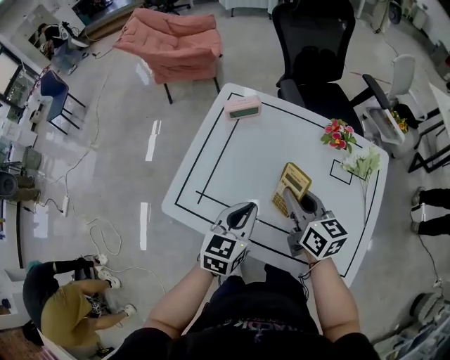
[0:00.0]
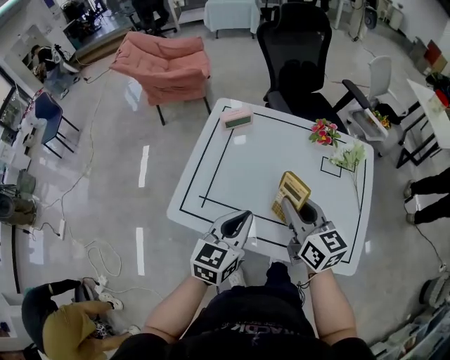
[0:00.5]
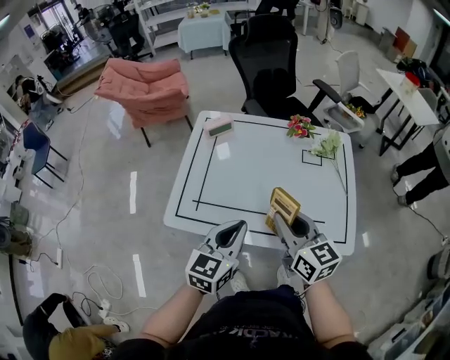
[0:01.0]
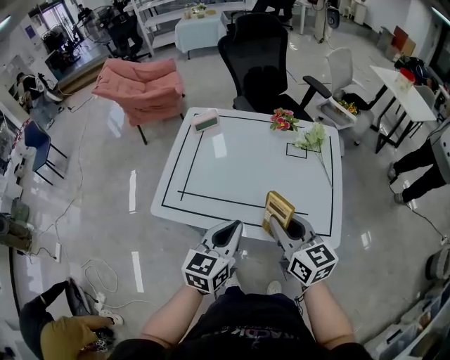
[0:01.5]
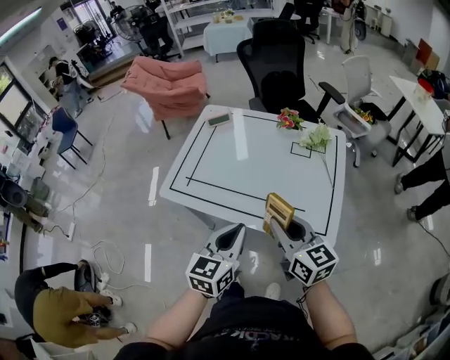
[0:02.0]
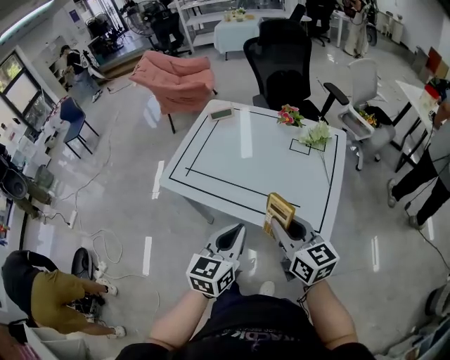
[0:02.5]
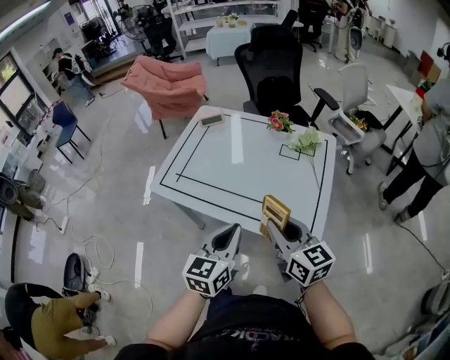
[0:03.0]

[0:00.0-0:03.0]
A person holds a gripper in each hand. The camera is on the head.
0:00.0 to 0:01.5: The left gripper shifts about 20 cm backward and upward. The right gripper shifts approximately 20 cm backward.
0:01.5 to 0:03.0: The left gripper is displaced backward and to the right by roughly 15 cm; the right gripper moves to the right and backward, approximately 10 cm.

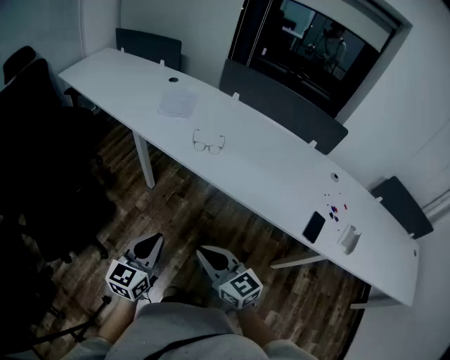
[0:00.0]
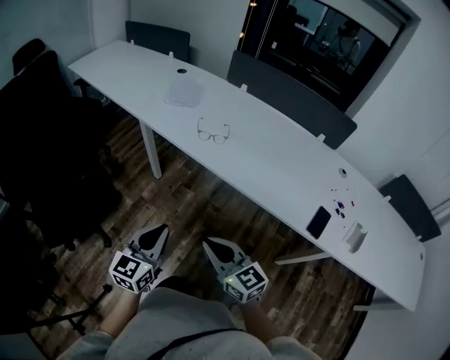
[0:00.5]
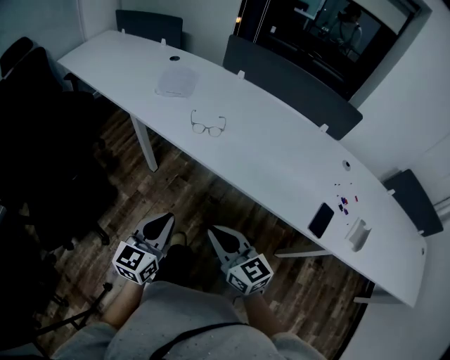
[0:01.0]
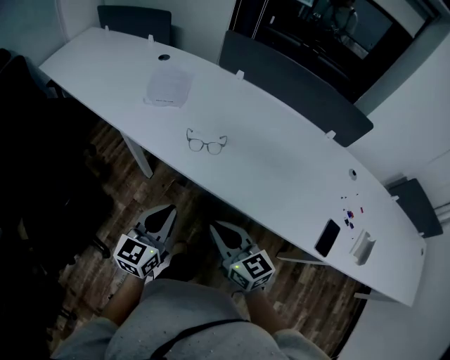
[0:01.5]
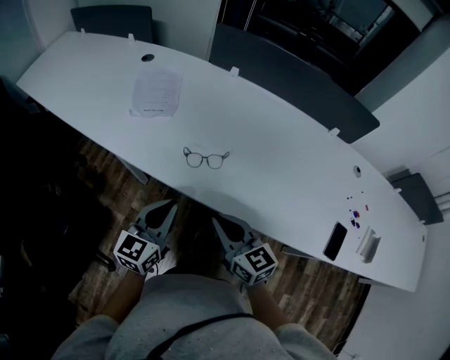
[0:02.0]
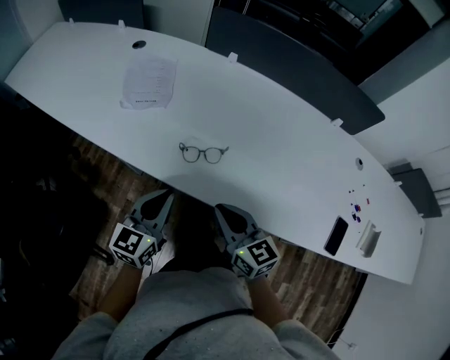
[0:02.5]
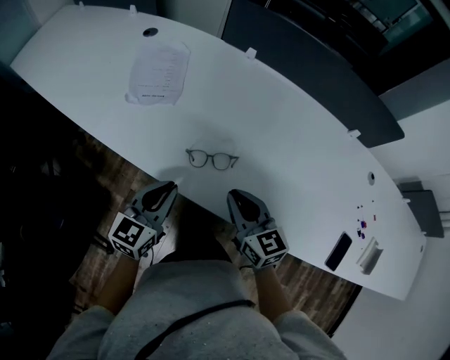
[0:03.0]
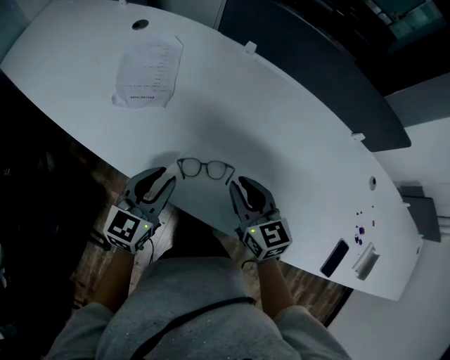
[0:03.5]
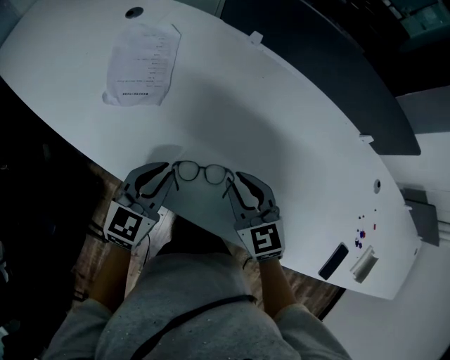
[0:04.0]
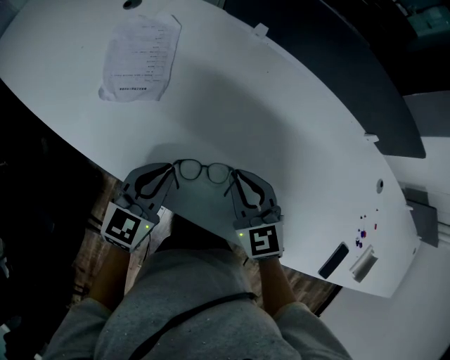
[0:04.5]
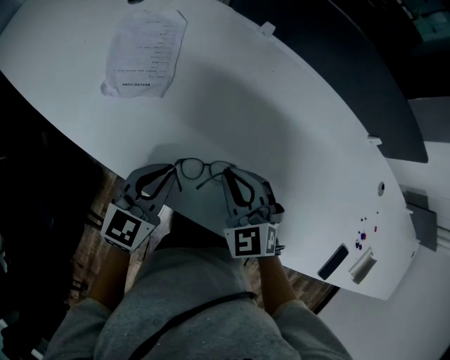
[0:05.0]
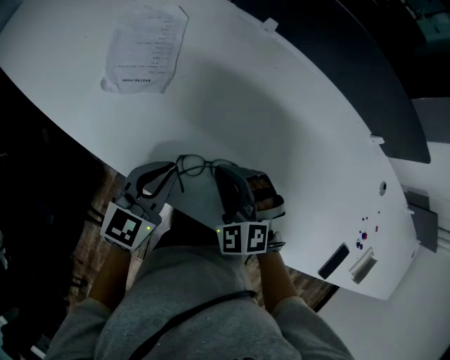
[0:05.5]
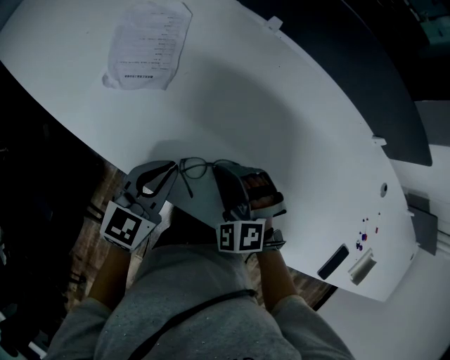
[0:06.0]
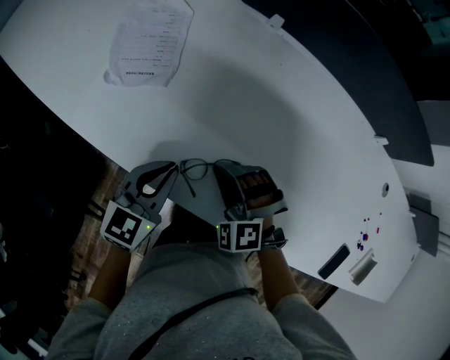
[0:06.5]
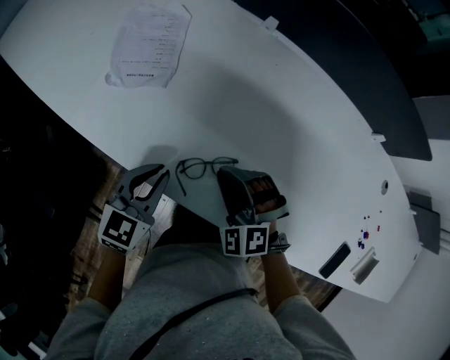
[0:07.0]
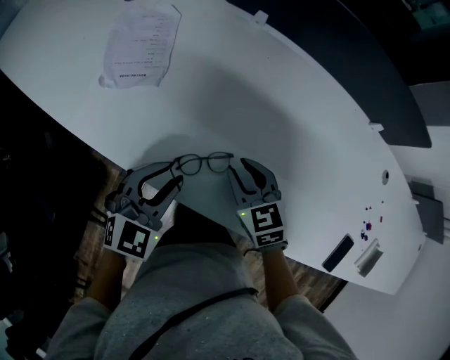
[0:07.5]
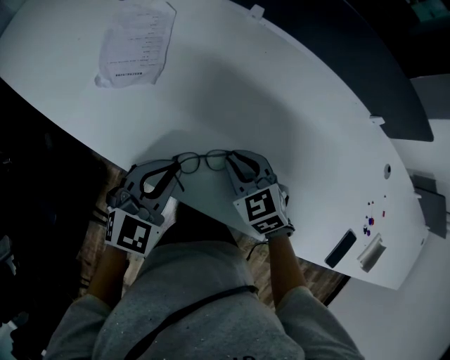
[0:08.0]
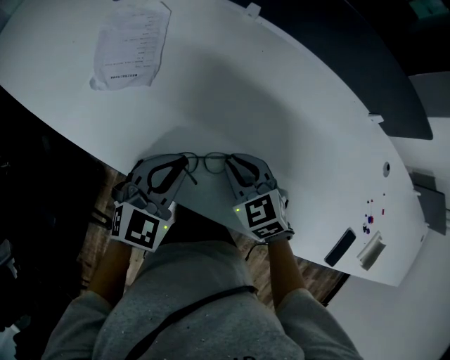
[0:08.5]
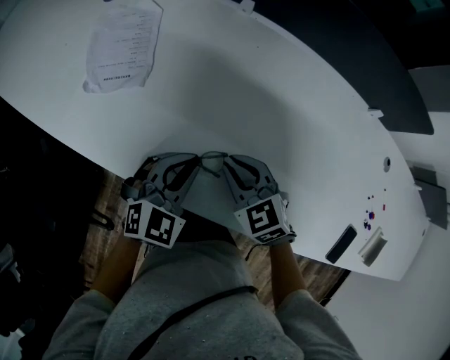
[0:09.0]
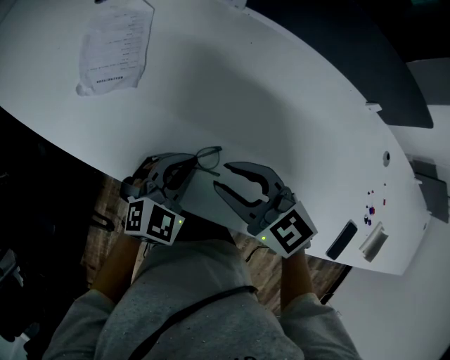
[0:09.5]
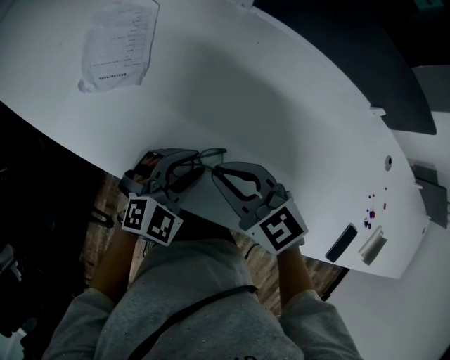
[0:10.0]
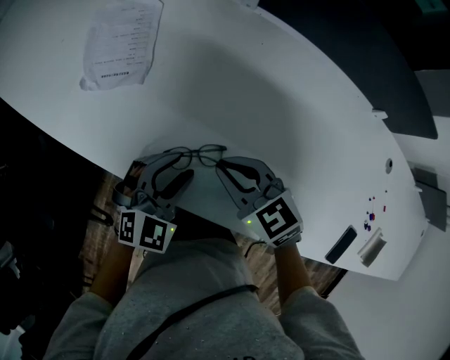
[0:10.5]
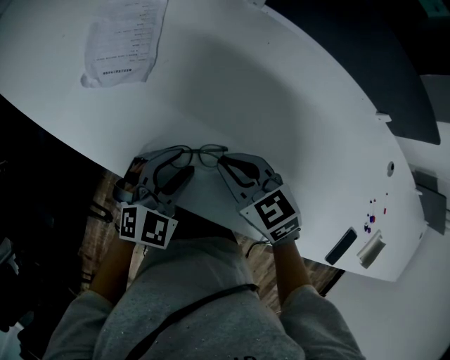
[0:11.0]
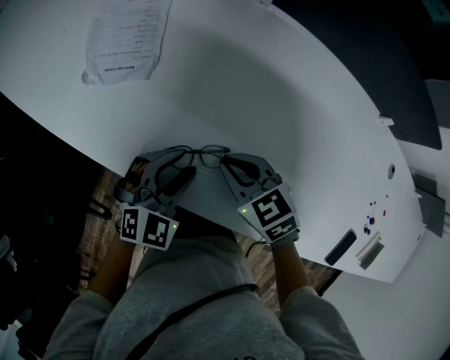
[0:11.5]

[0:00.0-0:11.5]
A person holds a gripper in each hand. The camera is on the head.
0:00.0 to 0:02.0: The grippers both shift forward by roughly 35 cm.
0:02.0 to 0:04.0: Both grippers move forward, roughly 20 cm. The right gripper changes its angle by about 20 degrees.
0:04.0 to 0:06.0: The right gripper goes approximately 10 cm downward and to the left, and twists about 50 degrees counterclockwise, seen from behind.
0:06.0 to 0:07.5: The left gripper swivels some 30 degrees, and opens its fingers; the right gripper goes roughly 5 cm to the right, and twists roughly 60 degrees clockwise, seen from behind.
0:07.5 to 0:09.5: The right gripper goes roughly 10 cm upward, and changes its angle by roughly 30 degrees, while the left gripper goes about 5 cm to the right, and closes its fingers.
0:09.5 to 0:11.5: The left gripper opens up. The right gripper heads downward, covering roughly 10 cm, swivels some 20 degrees, and closes its fingers.

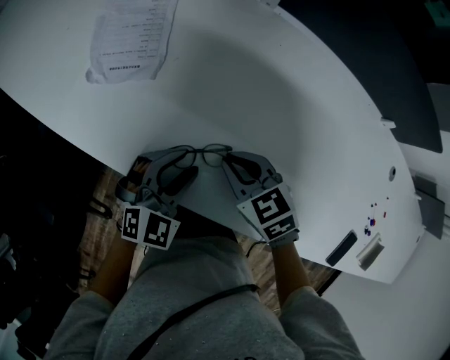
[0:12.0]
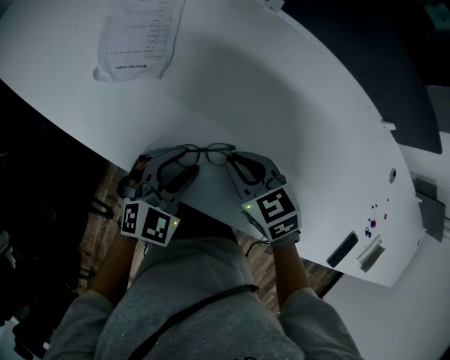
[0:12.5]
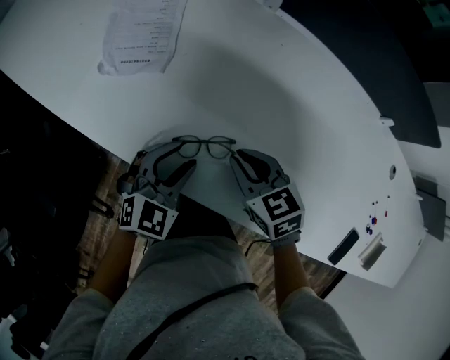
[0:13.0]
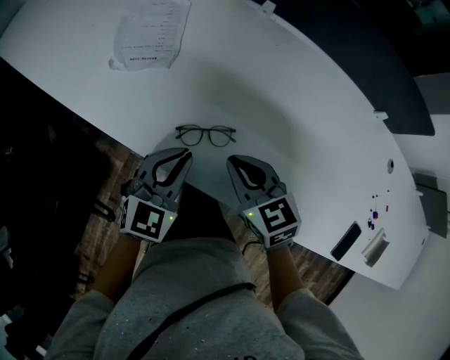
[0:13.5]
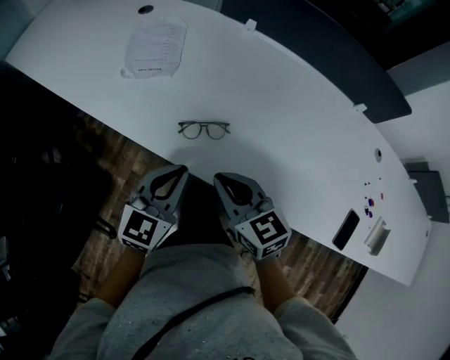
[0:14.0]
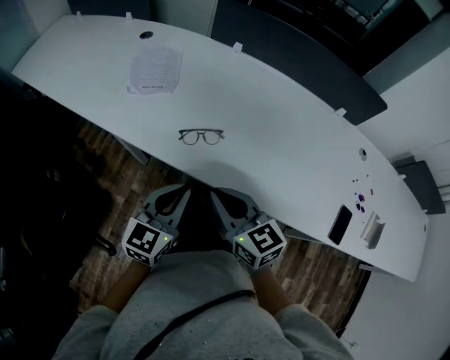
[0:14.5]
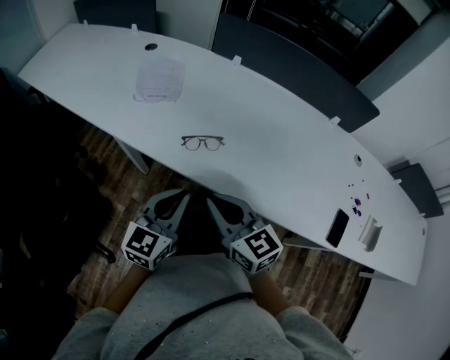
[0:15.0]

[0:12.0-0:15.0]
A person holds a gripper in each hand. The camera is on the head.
0:12.0 to 0:13.5: The right gripper goes roughly 10 cm backward and upward, while the left gripper moves upward, roughly 5 cm, and closes up.
0:13.5 to 0:15.0: Both grippers travel together backward and upward, some 20 cm. The left gripper rotates about 20 degrees.

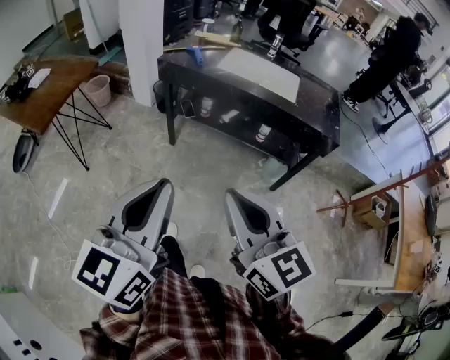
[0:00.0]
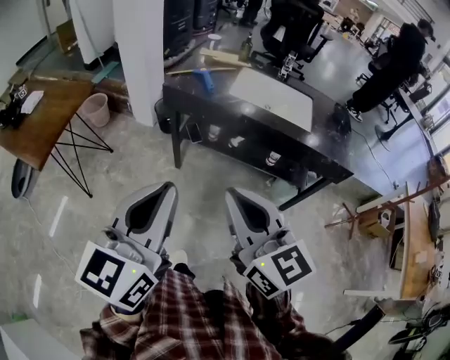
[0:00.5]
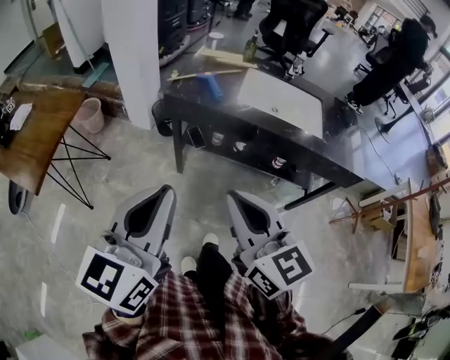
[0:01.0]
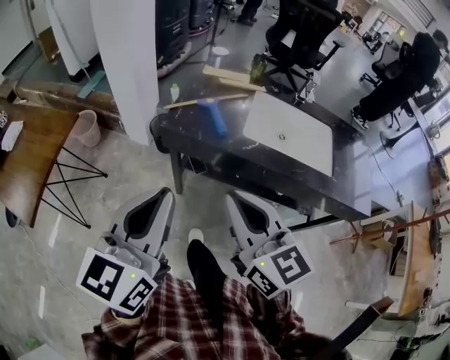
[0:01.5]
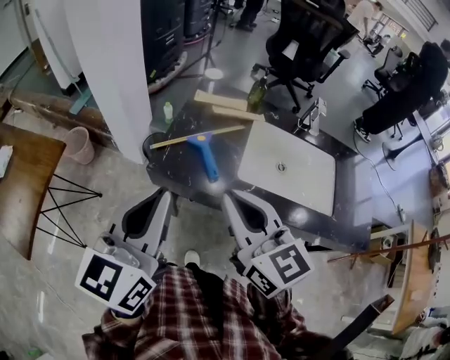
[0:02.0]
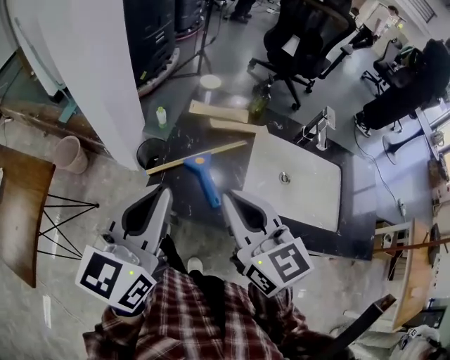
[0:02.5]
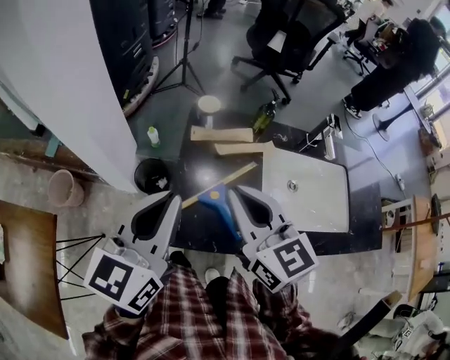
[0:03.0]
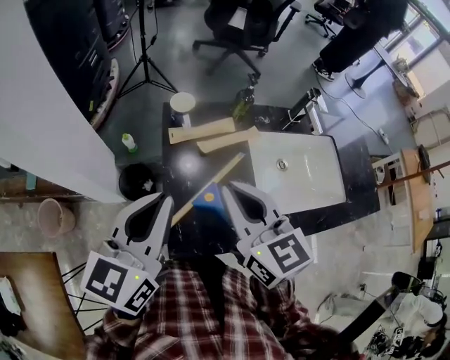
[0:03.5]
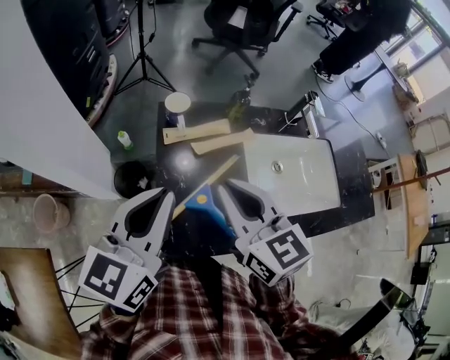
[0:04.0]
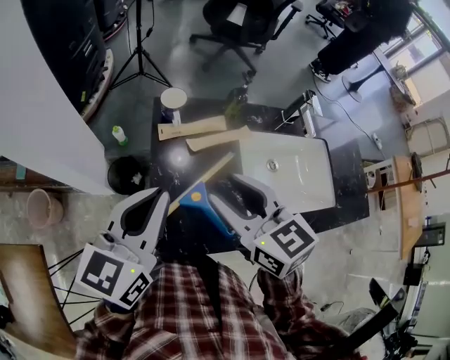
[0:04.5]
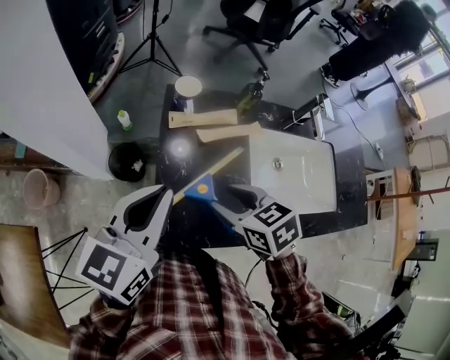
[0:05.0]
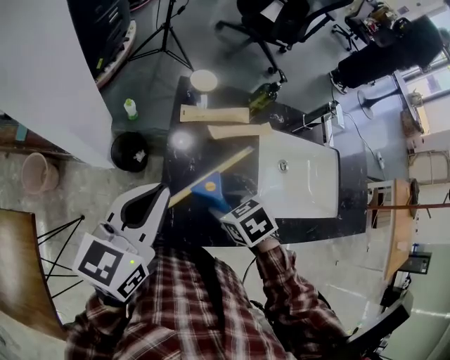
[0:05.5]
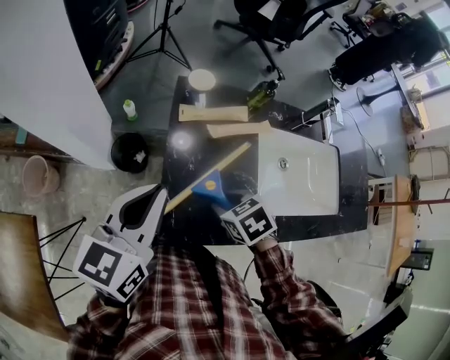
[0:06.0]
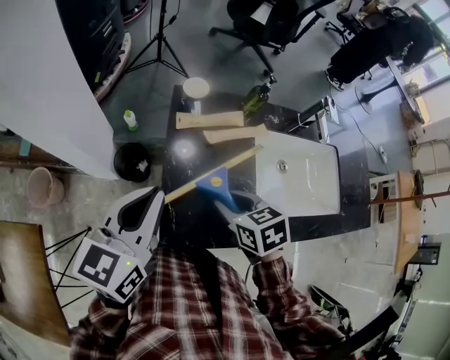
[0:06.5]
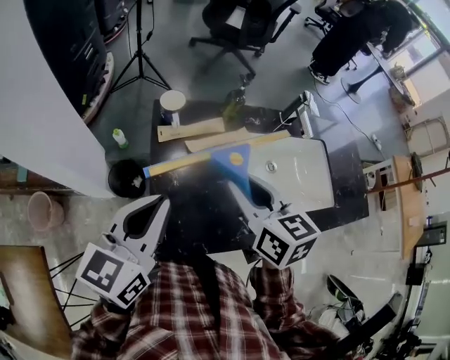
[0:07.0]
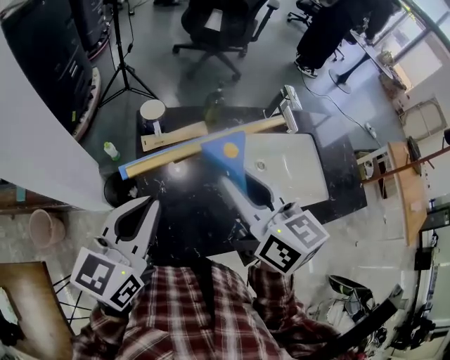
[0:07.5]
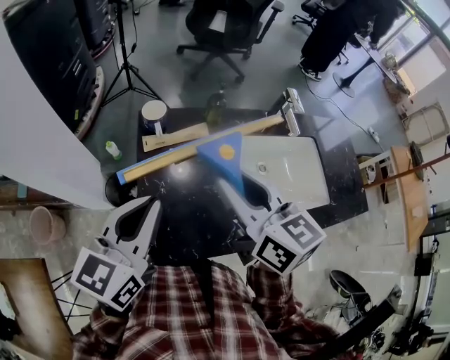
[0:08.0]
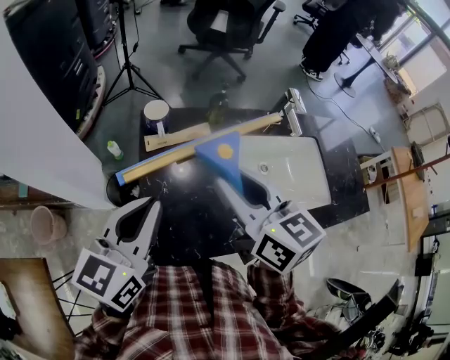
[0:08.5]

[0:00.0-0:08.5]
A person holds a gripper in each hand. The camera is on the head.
0:00.0 to 0:02.0: The two grippers travel together, forward, about 60 cm.
0:02.0 to 0:04.0: The left gripper moves roughly 30 cm, and changes its angle by approximately 30 degrees. The right gripper changes place by approximately 25 cm, and turns by about 20 degrees.
0:04.0 to 0:06.5: The left gripper is displaced downward by some 5 cm. Meanwhile the right gripper goes some 15 cm downward, tips its fingers downward by approximately 30 degrees, and opens.
0:06.5 to 0:08.5: The left gripper heads to the right, covering about 5 cm; the right gripper shifts roughly 20 cm upward, and tips its fingers upward by about 40 degrees.
